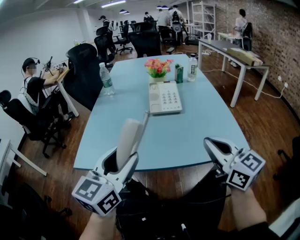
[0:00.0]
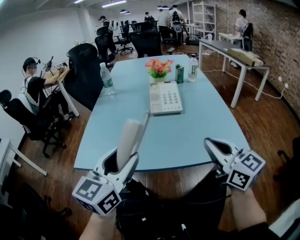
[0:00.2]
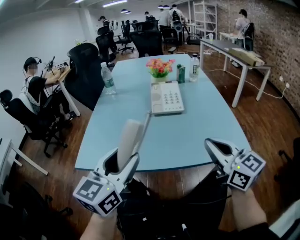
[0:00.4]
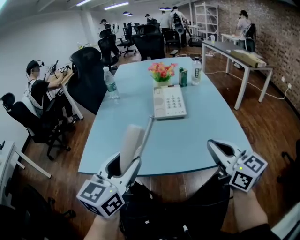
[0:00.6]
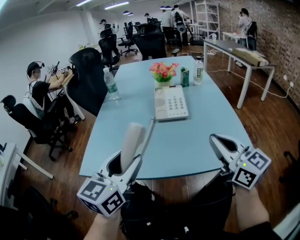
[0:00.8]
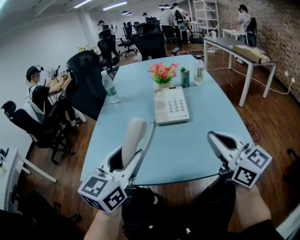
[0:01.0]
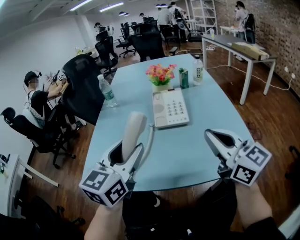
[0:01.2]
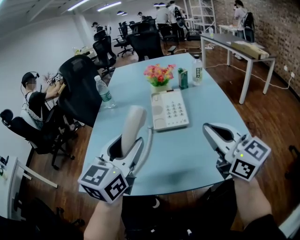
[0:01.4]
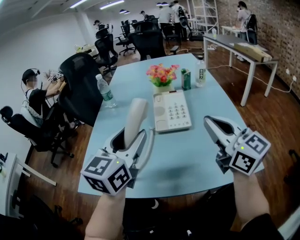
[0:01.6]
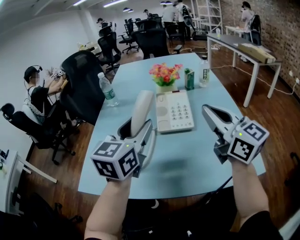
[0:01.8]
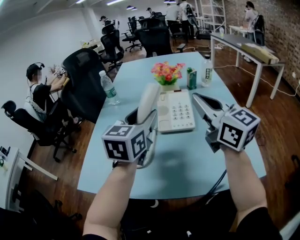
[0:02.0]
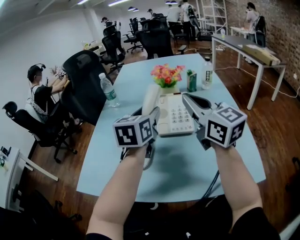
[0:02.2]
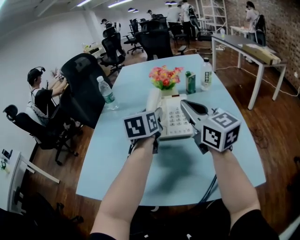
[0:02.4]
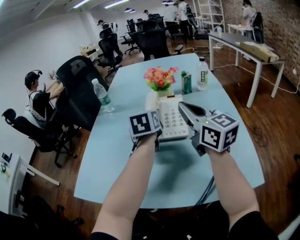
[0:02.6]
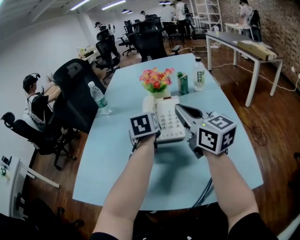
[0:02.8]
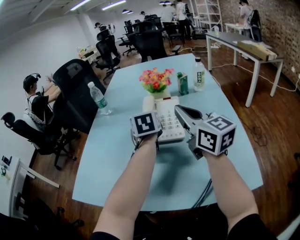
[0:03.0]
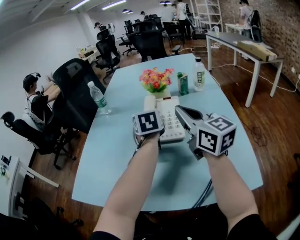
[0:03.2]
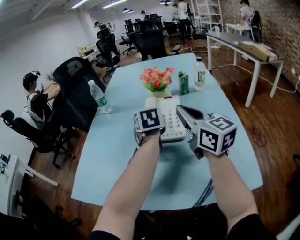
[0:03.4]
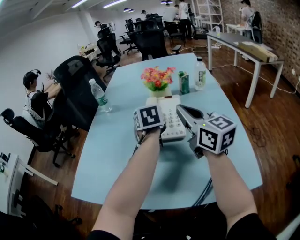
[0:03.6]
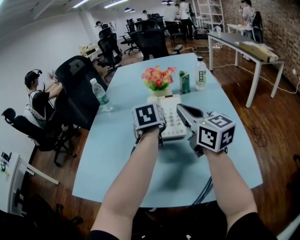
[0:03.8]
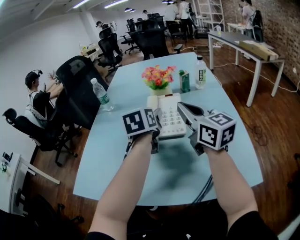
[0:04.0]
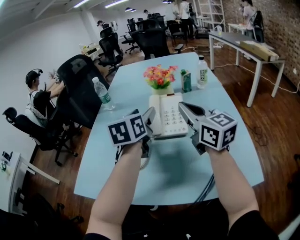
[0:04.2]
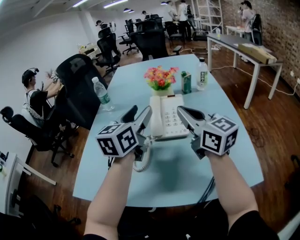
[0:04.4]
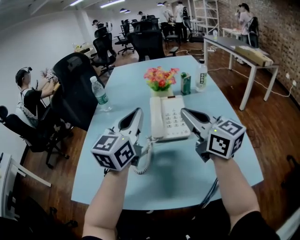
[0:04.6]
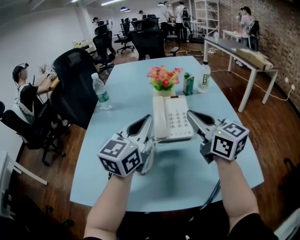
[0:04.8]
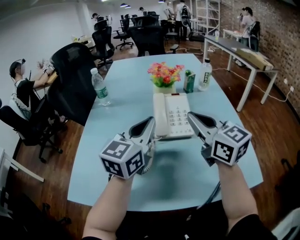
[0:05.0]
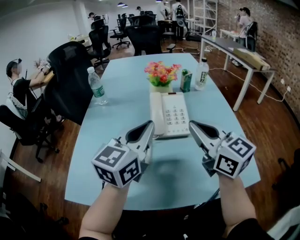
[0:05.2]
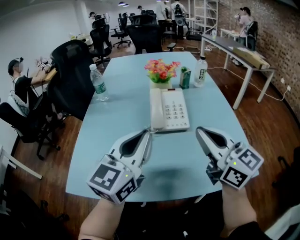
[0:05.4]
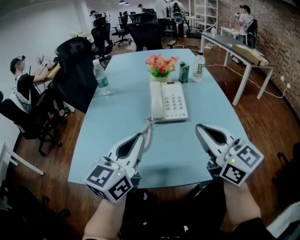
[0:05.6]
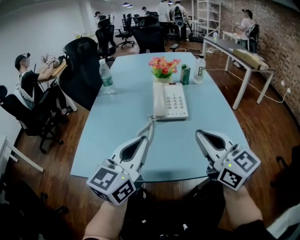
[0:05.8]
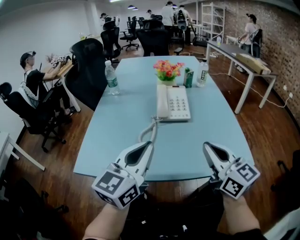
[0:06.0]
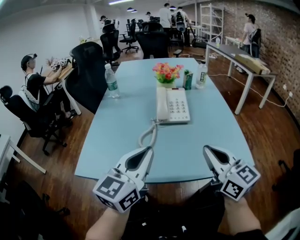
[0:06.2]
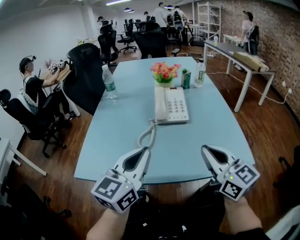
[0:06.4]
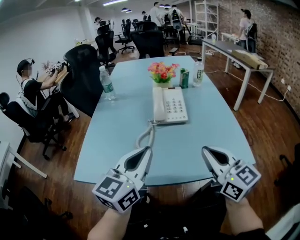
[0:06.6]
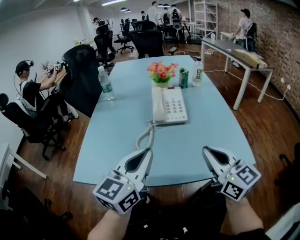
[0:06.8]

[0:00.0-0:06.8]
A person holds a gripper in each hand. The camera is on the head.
0:00.0 to 0:01.4: The grippers both shift forward by approximately 10 cm.
0:01.4 to 0:02.8: The right gripper is displaced forward by some 15 cm; the left gripper is displaced forward and downward by about 25 cm, and turns by roughly 30 degrees.
0:02.8 to 0:04.0: The grippers stay close to where they were, moving slightly.
0:04.0 to 0:05.4: The grippers both shift backward by some 15 cm. The left gripper changes its angle by roughly 40 degrees, and closes.
0:05.4 to 0:06.8: Both grippers travel together backward, approximately 10 cm.

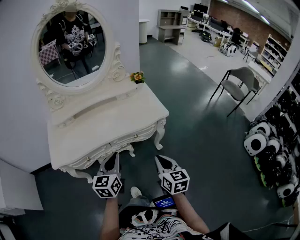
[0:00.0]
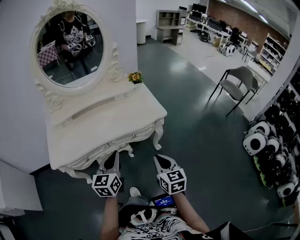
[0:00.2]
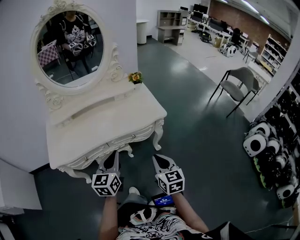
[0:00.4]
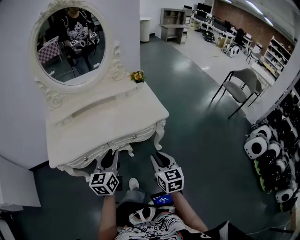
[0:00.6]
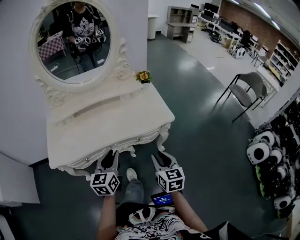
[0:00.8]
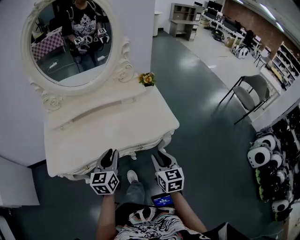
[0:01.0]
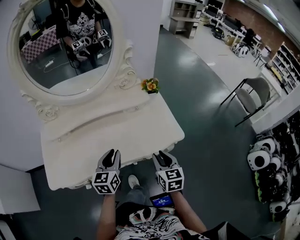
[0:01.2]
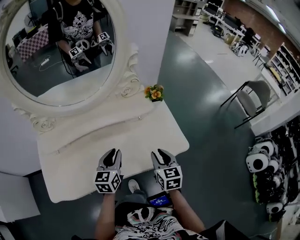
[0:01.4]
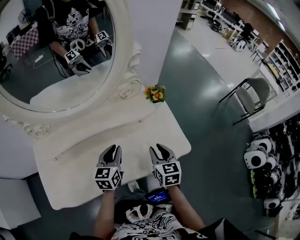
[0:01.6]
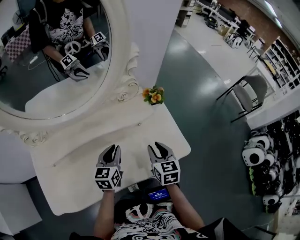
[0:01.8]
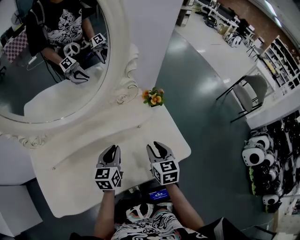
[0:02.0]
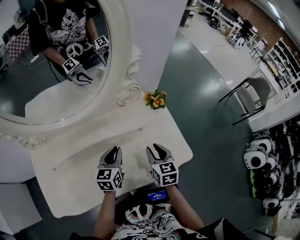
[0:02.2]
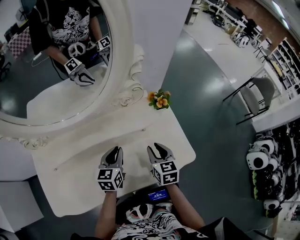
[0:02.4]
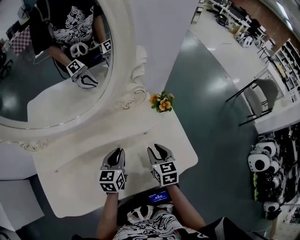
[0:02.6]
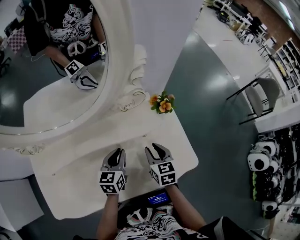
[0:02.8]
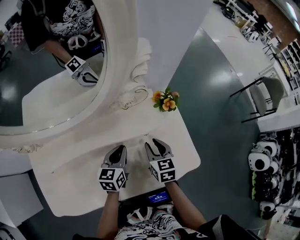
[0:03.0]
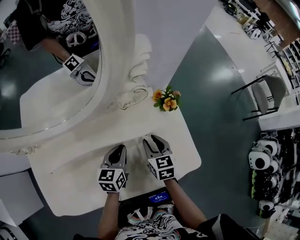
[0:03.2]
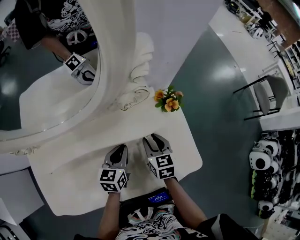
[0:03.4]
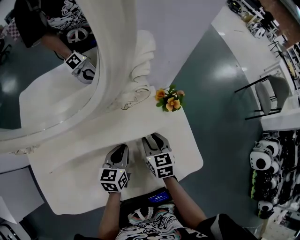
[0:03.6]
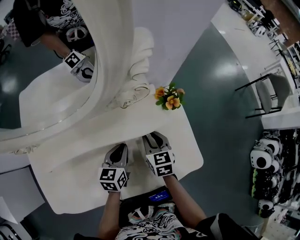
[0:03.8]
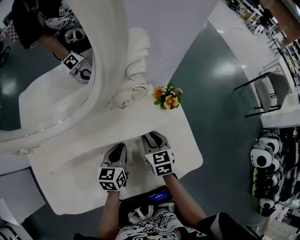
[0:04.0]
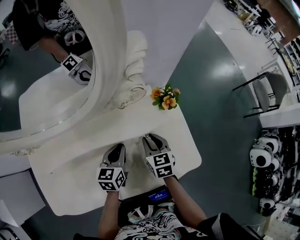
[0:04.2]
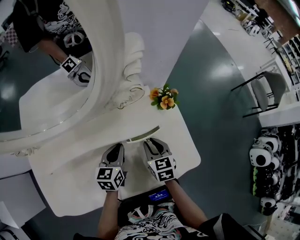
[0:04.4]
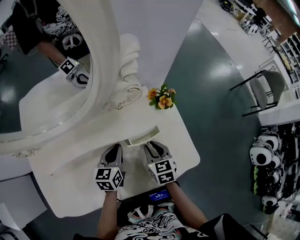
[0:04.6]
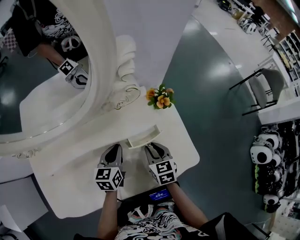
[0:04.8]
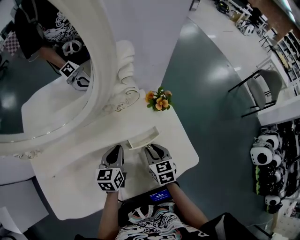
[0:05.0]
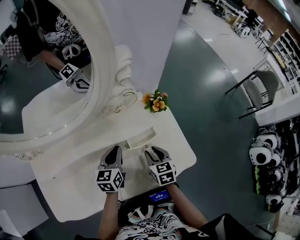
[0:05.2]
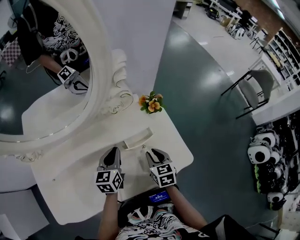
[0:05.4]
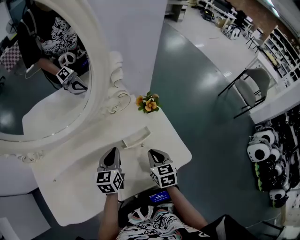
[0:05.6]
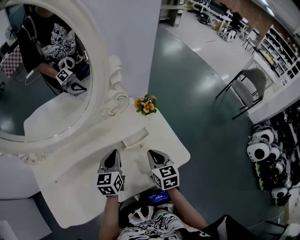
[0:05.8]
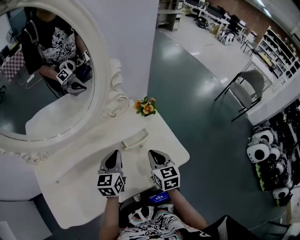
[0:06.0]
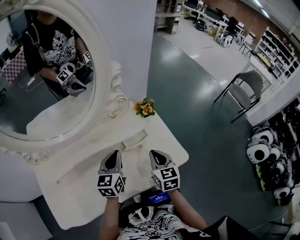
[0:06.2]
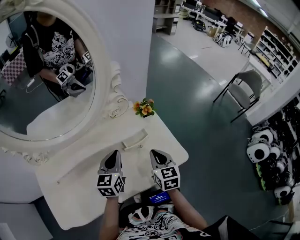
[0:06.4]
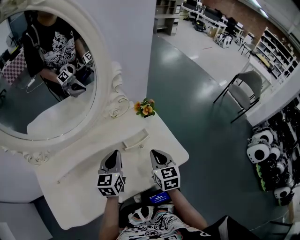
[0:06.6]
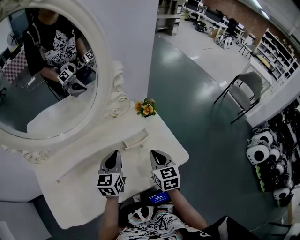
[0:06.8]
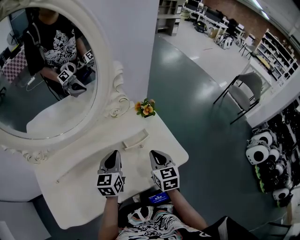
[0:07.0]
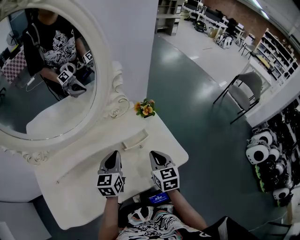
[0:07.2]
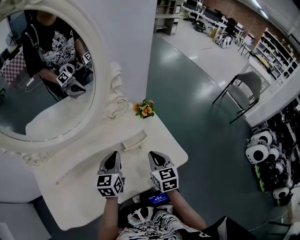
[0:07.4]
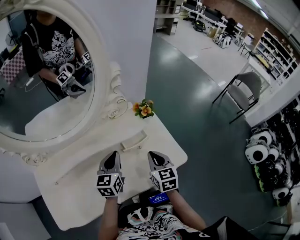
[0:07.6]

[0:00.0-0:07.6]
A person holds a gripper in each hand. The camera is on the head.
0:00.0 to 0:01.6: The grippers both shift forward by roughly 35 cm. The right gripper opens.
0:01.6 to 0:03.0: The grippers both shift forward and downward by roughly 10 cm.
0:03.0 to 0:04.6: There are only small adjustments of the grippers.
0:04.6 to 0:06.0: The right gripper moves upward and backward, about 10 cm, and closes up. Meanwhile the left gripper is displaced upward by some 10 cm.
0:06.0 to 0:07.6: The grippers stay close to where they were, moving slightly.

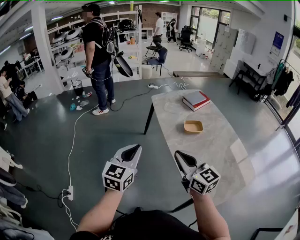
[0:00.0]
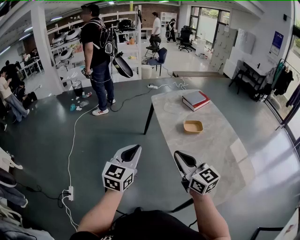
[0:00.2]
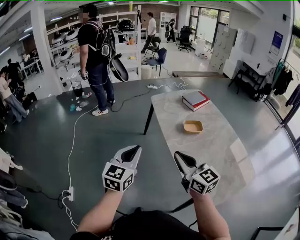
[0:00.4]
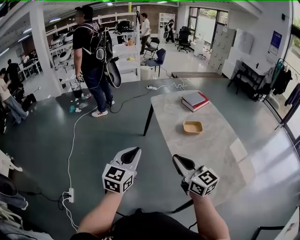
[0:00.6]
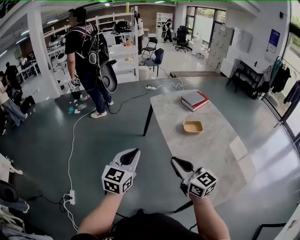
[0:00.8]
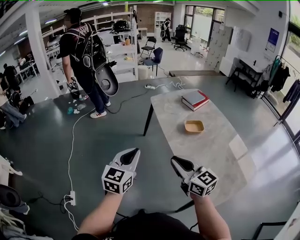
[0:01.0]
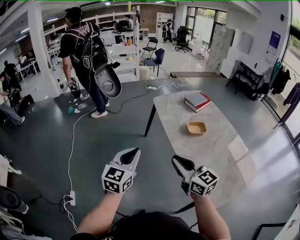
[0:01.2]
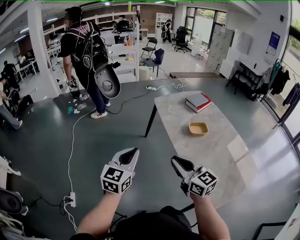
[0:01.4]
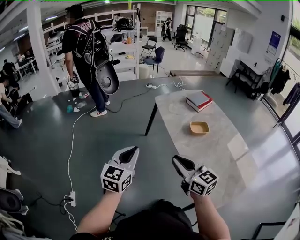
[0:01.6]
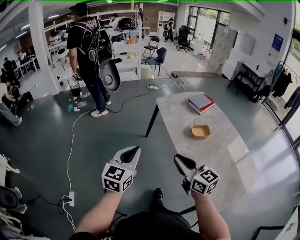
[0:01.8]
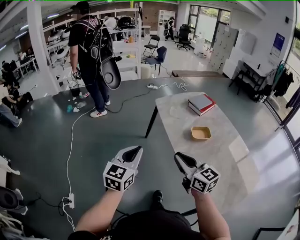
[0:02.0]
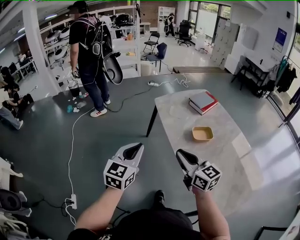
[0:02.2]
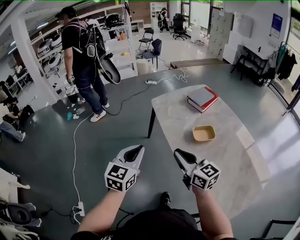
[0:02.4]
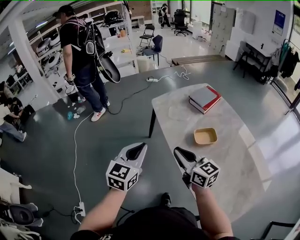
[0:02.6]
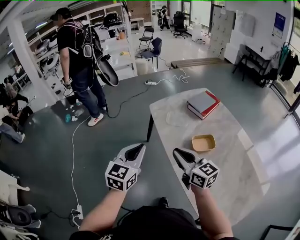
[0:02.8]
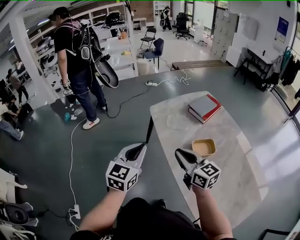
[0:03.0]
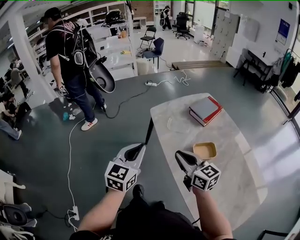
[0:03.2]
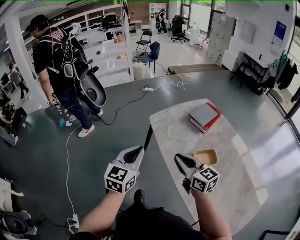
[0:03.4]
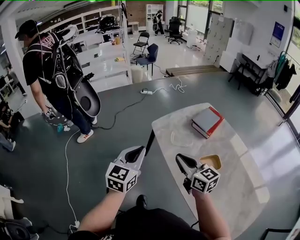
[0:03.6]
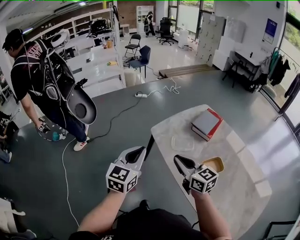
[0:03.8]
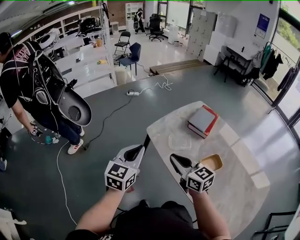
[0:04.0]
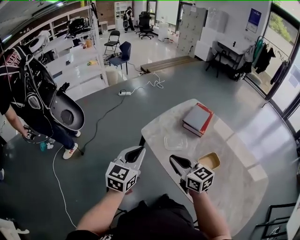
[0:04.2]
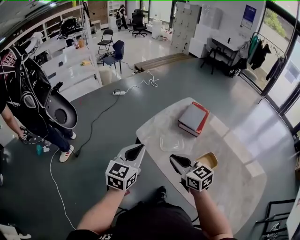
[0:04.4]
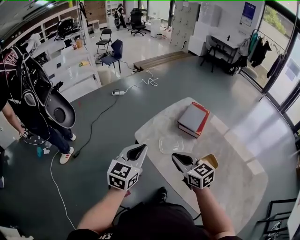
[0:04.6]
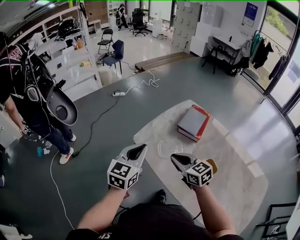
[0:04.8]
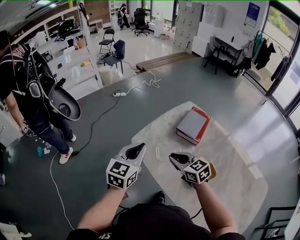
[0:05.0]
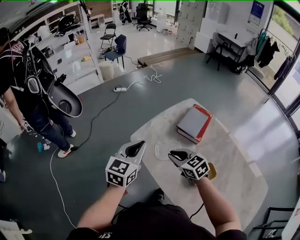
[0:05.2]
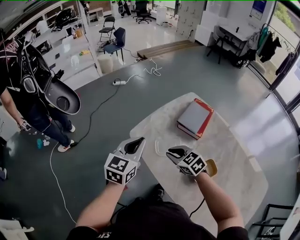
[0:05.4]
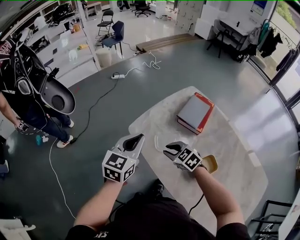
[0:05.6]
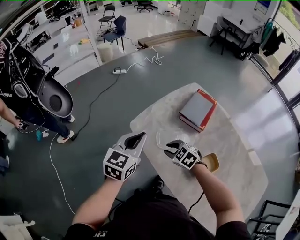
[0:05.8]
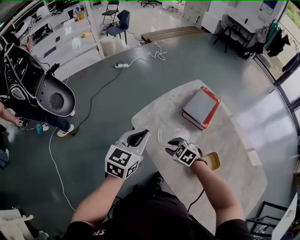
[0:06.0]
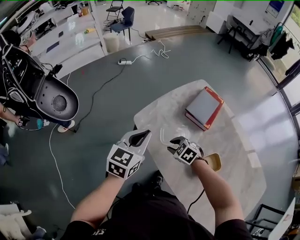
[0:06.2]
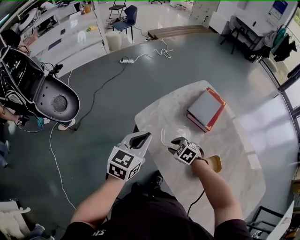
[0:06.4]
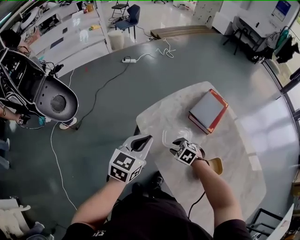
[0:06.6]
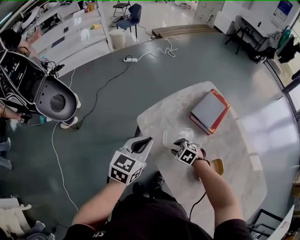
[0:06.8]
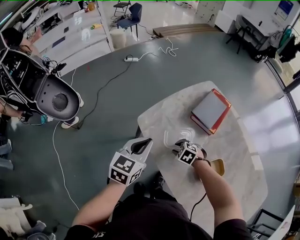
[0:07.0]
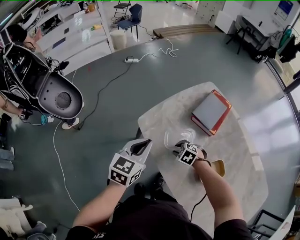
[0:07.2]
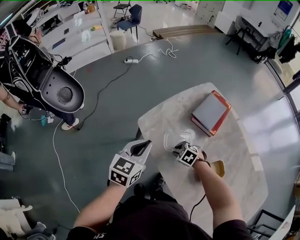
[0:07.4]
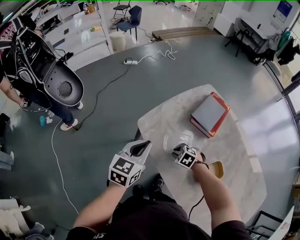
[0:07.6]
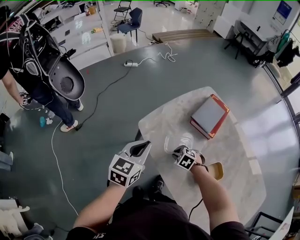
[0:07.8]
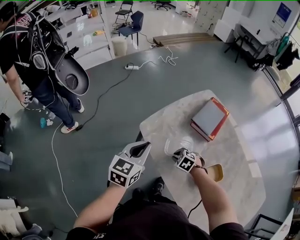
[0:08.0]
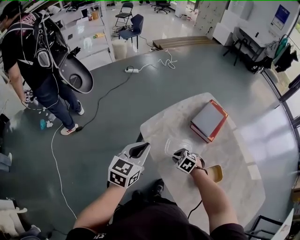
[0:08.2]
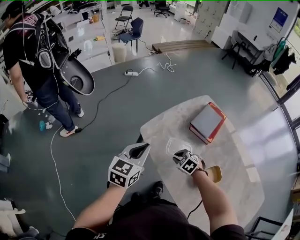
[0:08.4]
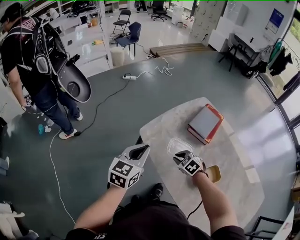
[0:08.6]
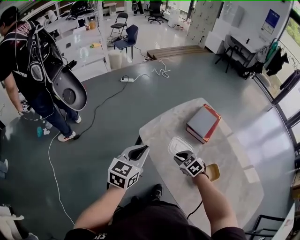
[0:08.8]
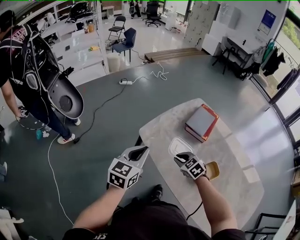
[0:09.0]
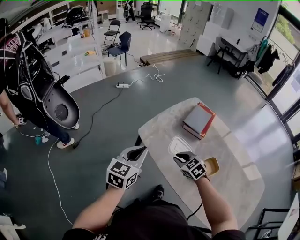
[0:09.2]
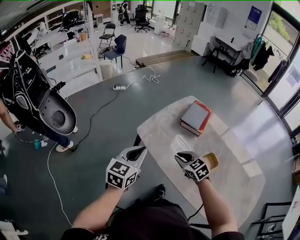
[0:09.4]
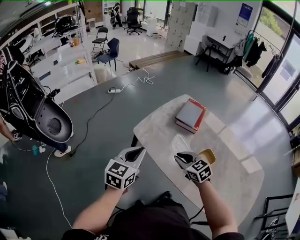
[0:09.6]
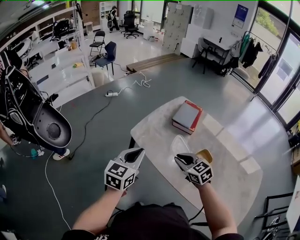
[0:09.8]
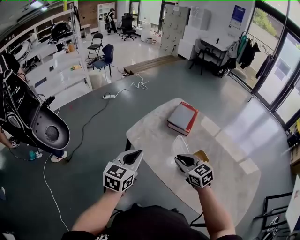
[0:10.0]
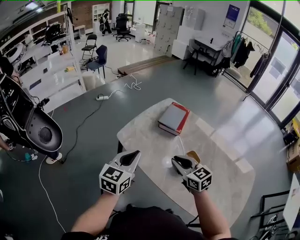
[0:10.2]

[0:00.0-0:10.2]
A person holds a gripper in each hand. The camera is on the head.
0:00.0 to 0:01.4: The grippers both shift to the left by approximately 10 cm.
0:01.4 to 0:03.0: The right gripper goes about 25 cm forward; the left gripper moves forward and to the right, some 30 cm.
0:03.0 to 0:04.4: Both grippers move forward, about 20 cm. The left gripper turns by about 20 degrees.
0:04.4 to 0:05.8: The left gripper is displaced forward and to the right by approximately 10 cm; the right gripper travels downward and forward by some 20 cm, points its fingers roughly 30 degrees further downward, and opens up.
0:05.8 to 0:07.2: The right gripper is displaced downward by roughly 10 cm; the left gripper is displaced downward by approximately 5 cm.
0:07.2 to 0:08.8: The left gripper ends up roughly 5 cm from where it was; the right gripper moves upward, approximately 10 cm, and swivels approximately 20 degrees.
0:08.8 to 0:10.2: The right gripper is displaced upward and backward by roughly 20 cm, and angles its fingers upward, by about 30 degrees. The left gripper travels backward, to the right and upward by roughly 15 cm.
